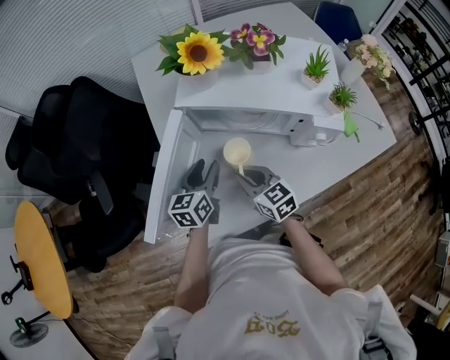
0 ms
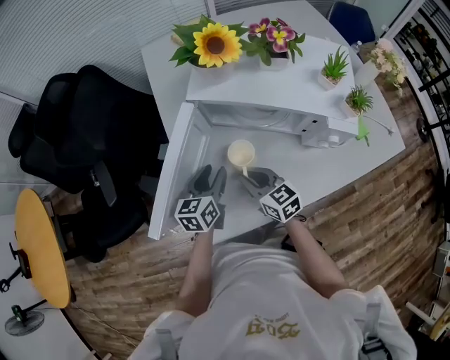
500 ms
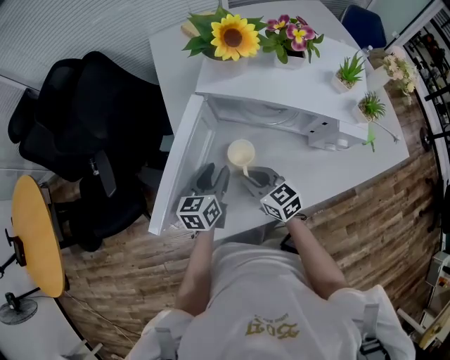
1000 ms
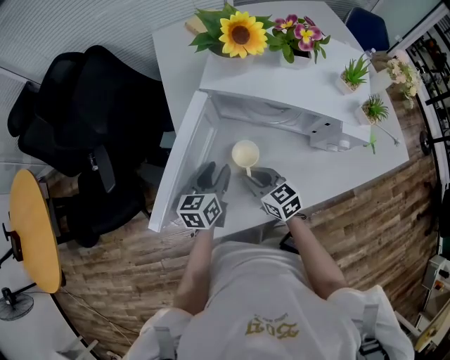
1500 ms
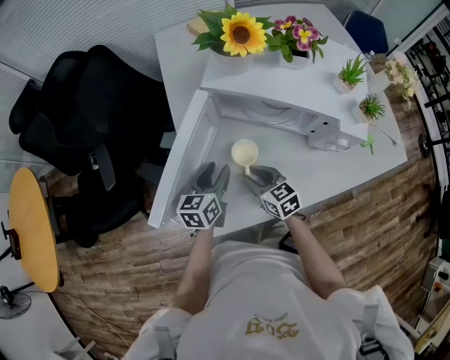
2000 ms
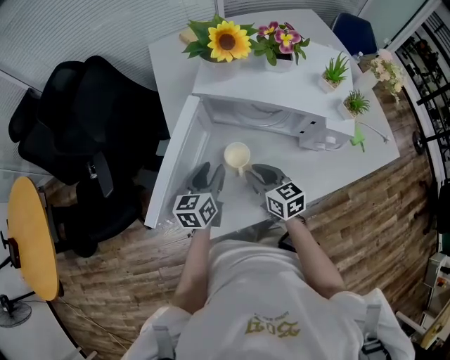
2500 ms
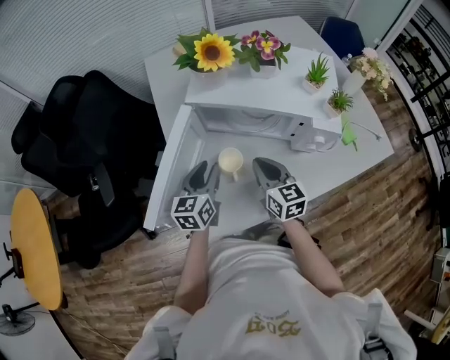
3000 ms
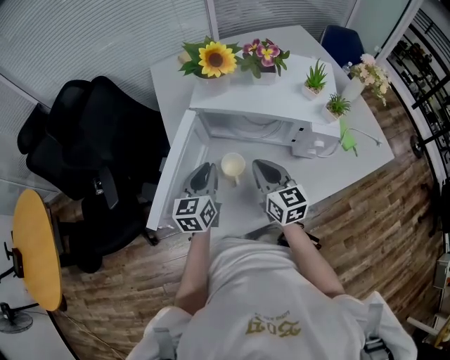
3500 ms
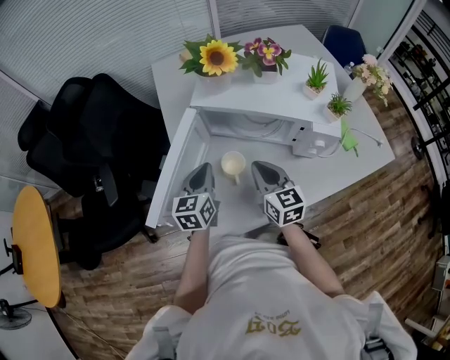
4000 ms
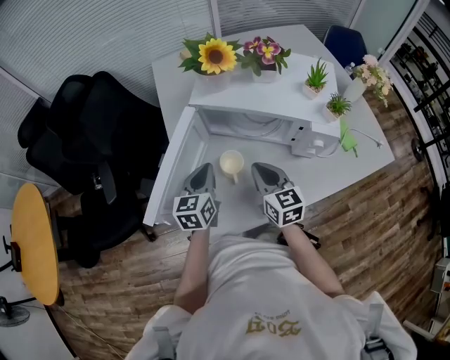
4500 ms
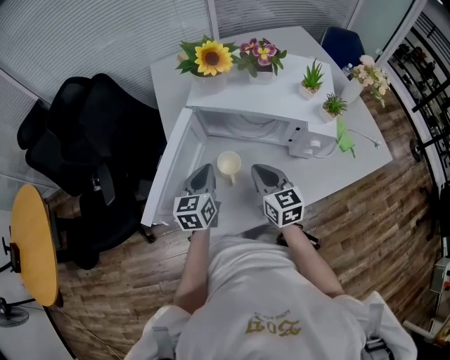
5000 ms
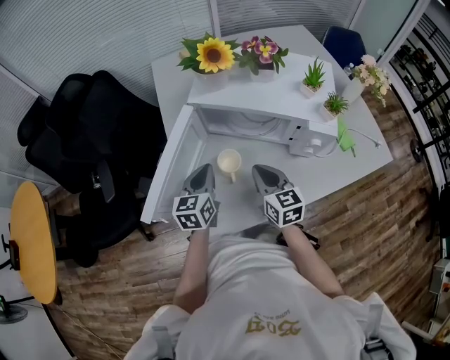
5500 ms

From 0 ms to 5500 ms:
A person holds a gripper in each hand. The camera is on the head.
From 0 ms to 2000 ms: The right gripper moves downward, approximately 5 cm, while the left gripper changes place by some 5 cm.
From 2000 ms to 3500 ms: The left gripper goes about 10 cm upward, and closes its fingers; the right gripper heads upward and to the right, covering roughly 15 cm, changes its angle by approximately 30 degrees, and closes up.
From 3500 ms to 5500 ms: The grippers move only a little.

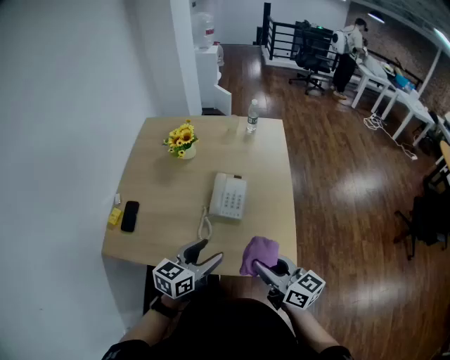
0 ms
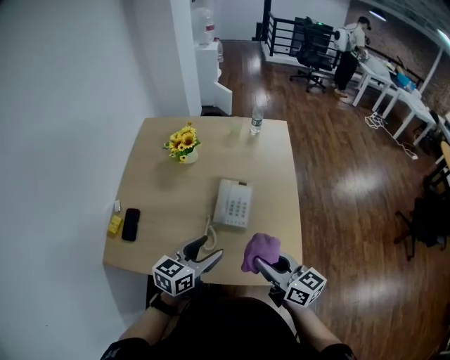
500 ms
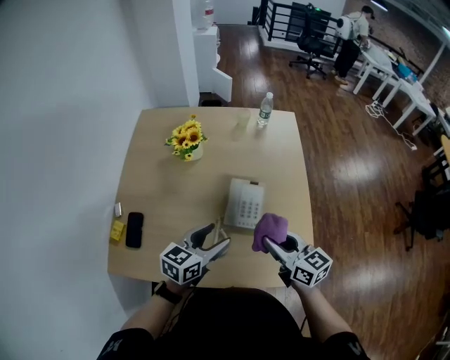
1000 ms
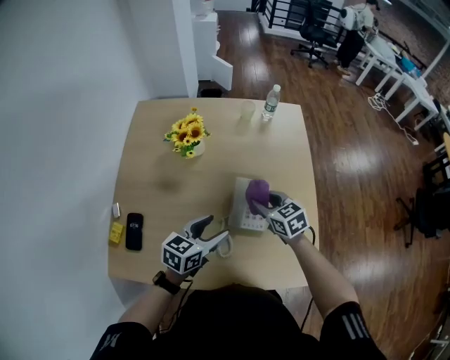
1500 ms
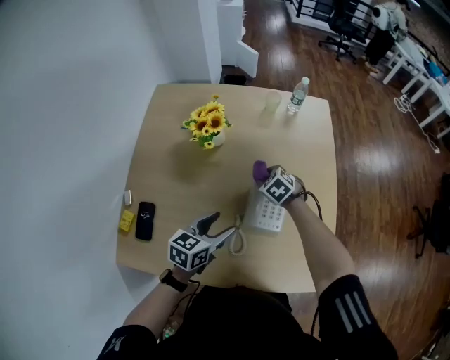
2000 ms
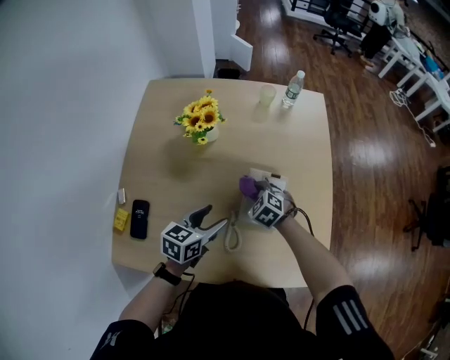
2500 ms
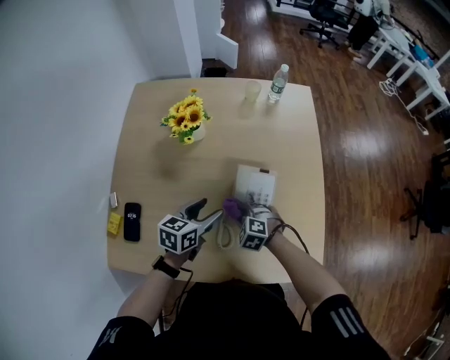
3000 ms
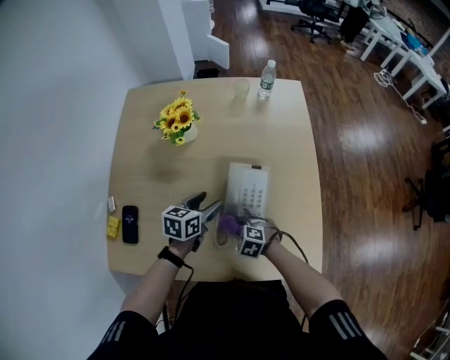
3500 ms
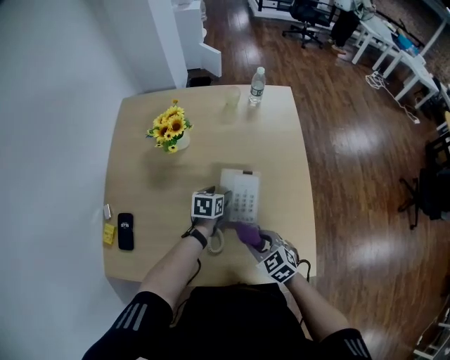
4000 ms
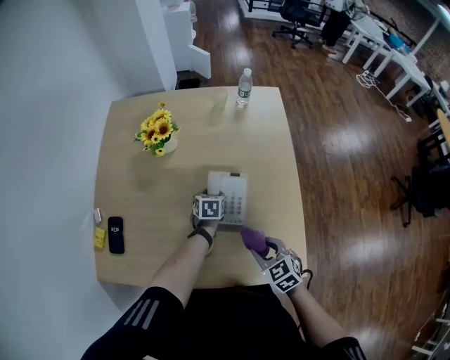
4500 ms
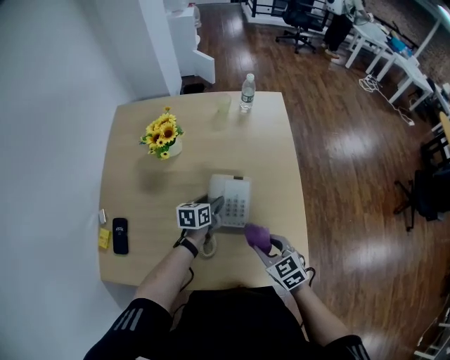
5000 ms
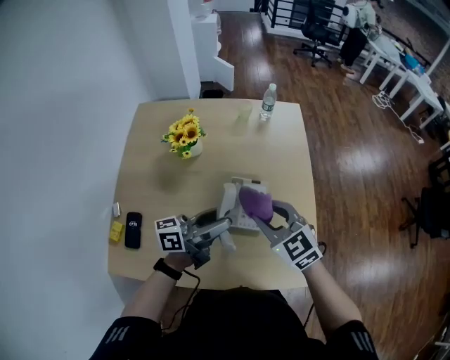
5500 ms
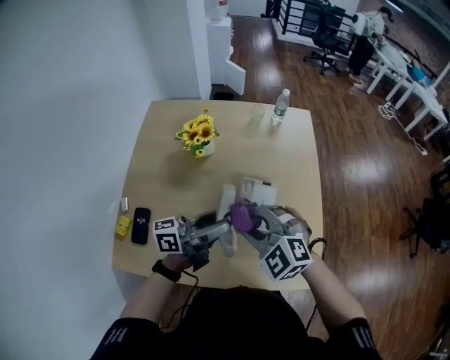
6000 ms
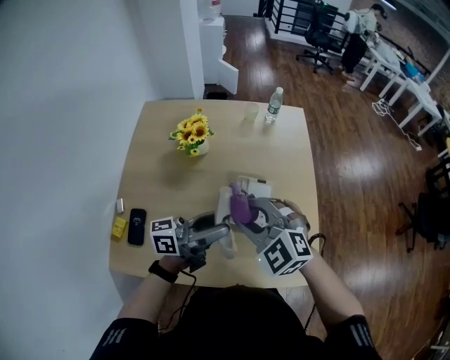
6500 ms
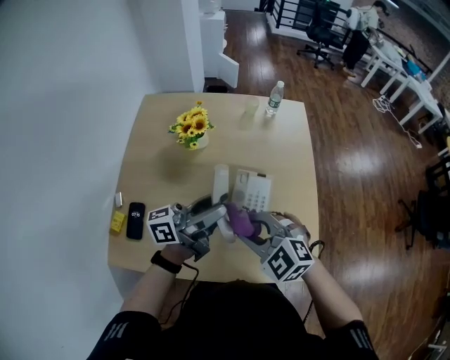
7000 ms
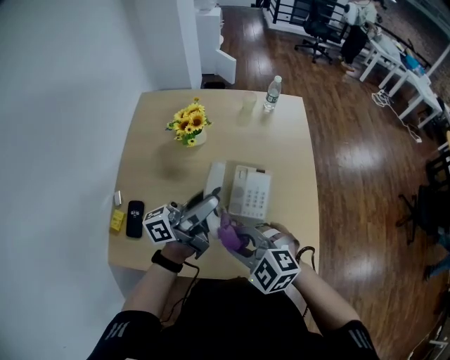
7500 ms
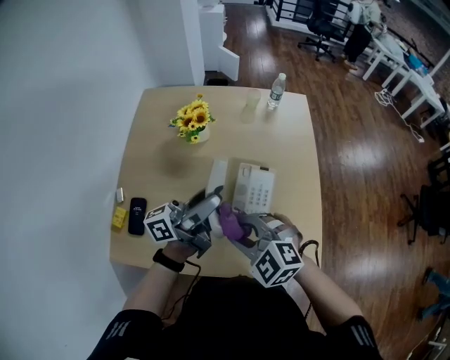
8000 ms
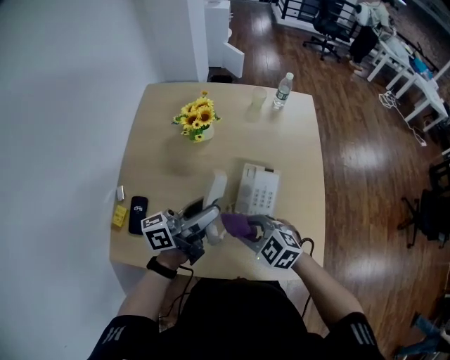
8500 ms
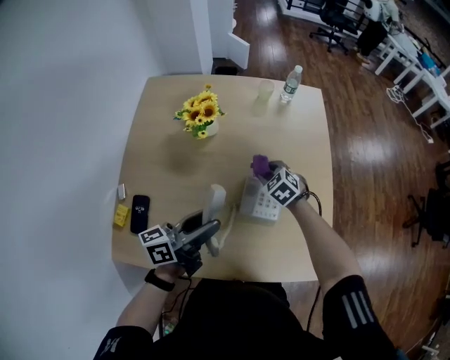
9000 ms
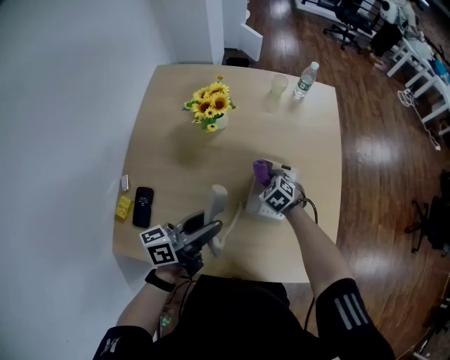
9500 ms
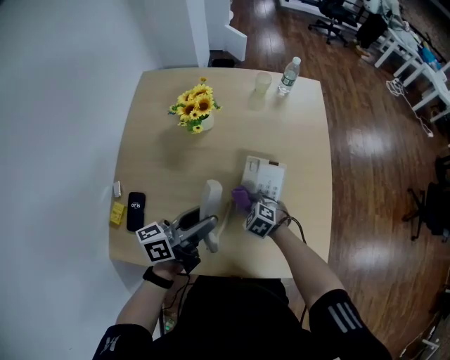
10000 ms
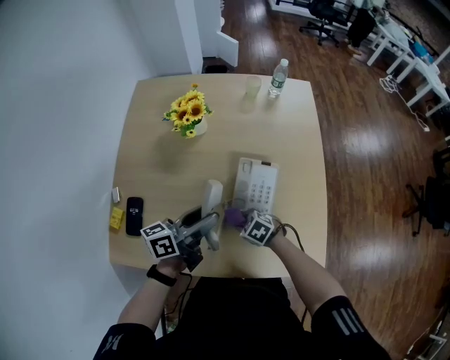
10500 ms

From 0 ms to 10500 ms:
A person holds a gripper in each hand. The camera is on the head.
From 0 ms to 2000 ms: The left gripper goes some 25 cm forward, to the left and downward. The right gripper travels forward and downward by approximately 50 cm, and tips its fingers downward by about 60 degrees.
From 2000 ms to 4000 ms: The right gripper goes roughly 25 cm backward, while the left gripper goes roughly 20 cm downward, forward and to the right.
From 4000 ms to 6500 ms: The right gripper heads upward and to the left, covering roughly 25 cm, and rotates some 40 degrees. Meanwhile the left gripper moves upward and backward, approximately 30 cm, and tips its fingers upward by about 60 degrees.
From 6500 ms to 8500 ms: The right gripper is displaced downward by about 15 cm, and turns by roughly 20 degrees. The left gripper shifts by approximately 5 cm.
From 8500 ms to 10500 ms: The left gripper goes approximately 5 cm downward, while the right gripper shifts about 20 cm downward, and rotates approximately 30 degrees.

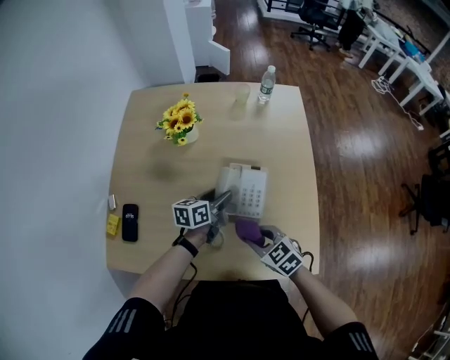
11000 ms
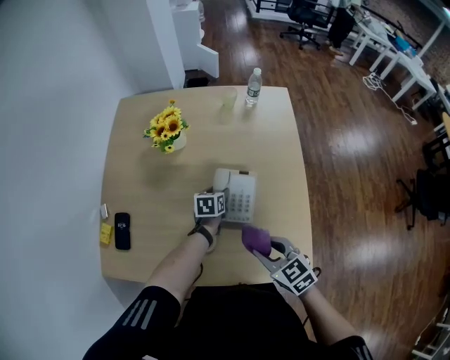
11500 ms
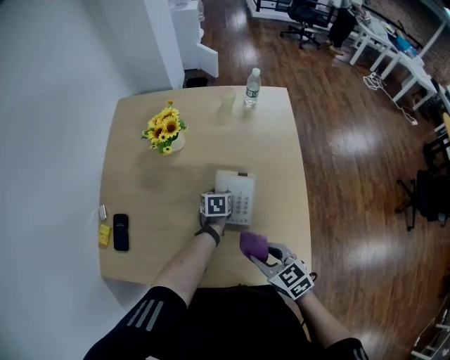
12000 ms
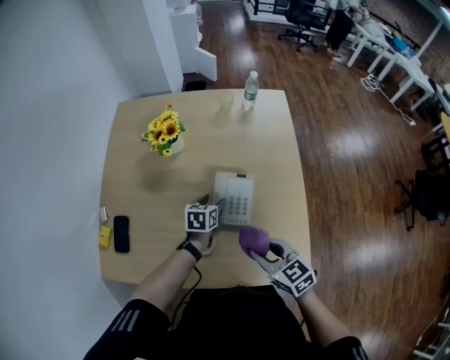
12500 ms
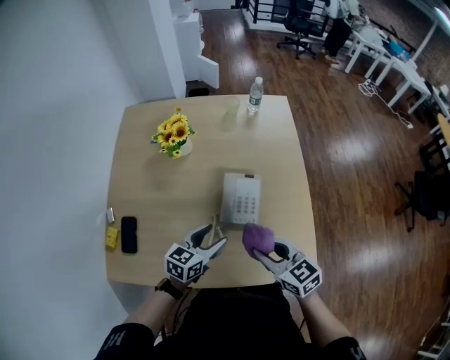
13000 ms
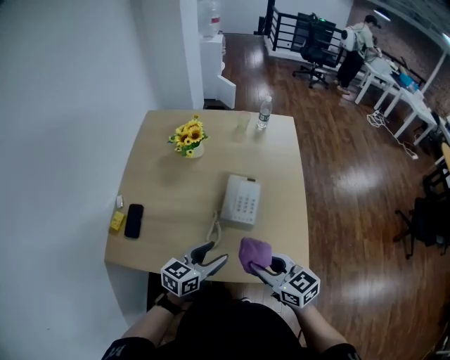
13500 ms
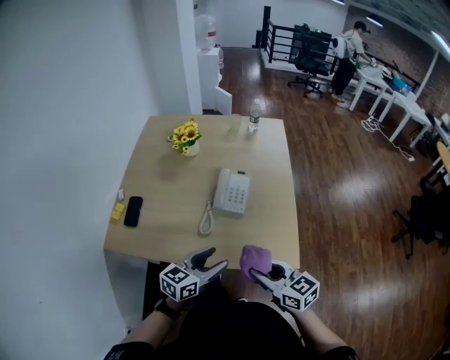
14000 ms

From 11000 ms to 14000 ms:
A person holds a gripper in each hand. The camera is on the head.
From 11000 ms to 12500 ms: The right gripper heads upward and to the right, covering some 10 cm; the left gripper swivels about 20 degrees.
From 12500 ms to 14000 ms: The right gripper heads backward, covering about 20 cm. Meanwhile the left gripper is displaced backward and upward by roughly 40 cm, and turns by some 30 degrees.

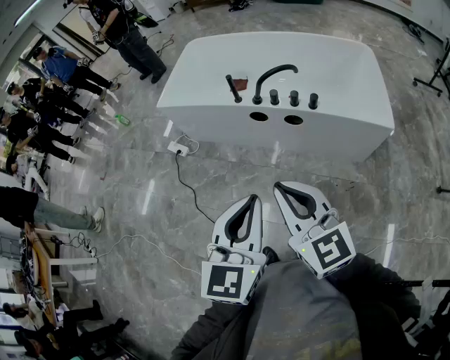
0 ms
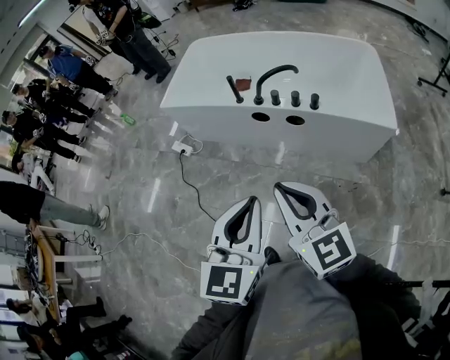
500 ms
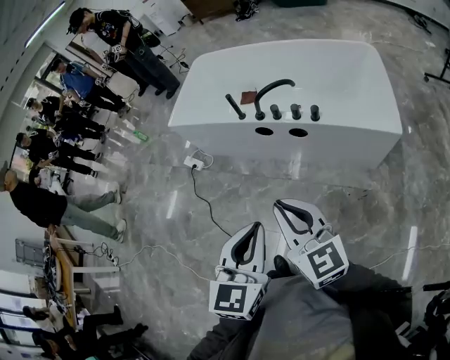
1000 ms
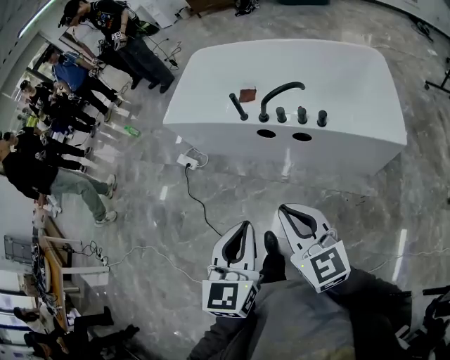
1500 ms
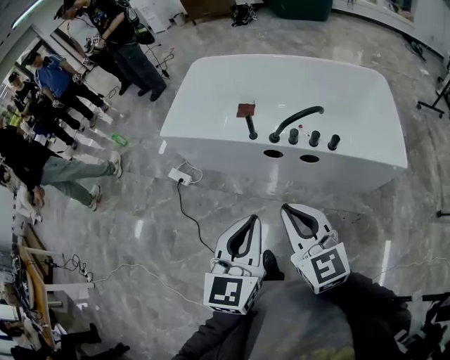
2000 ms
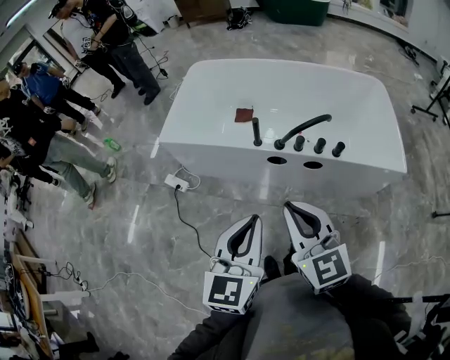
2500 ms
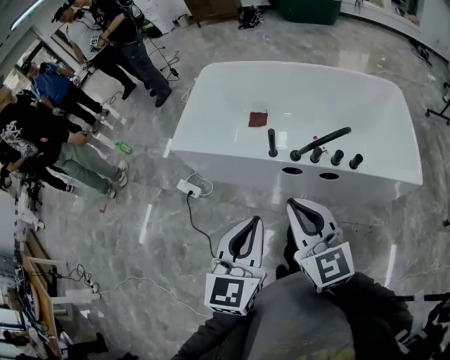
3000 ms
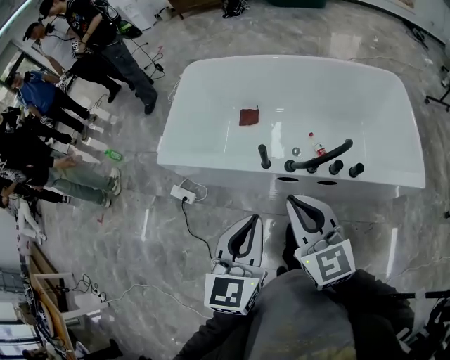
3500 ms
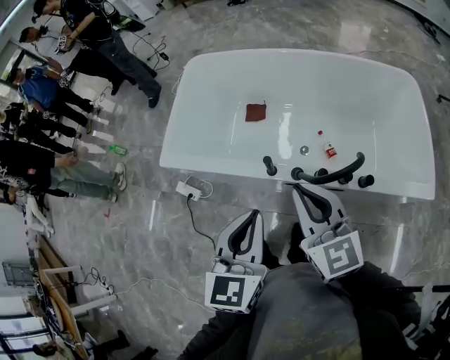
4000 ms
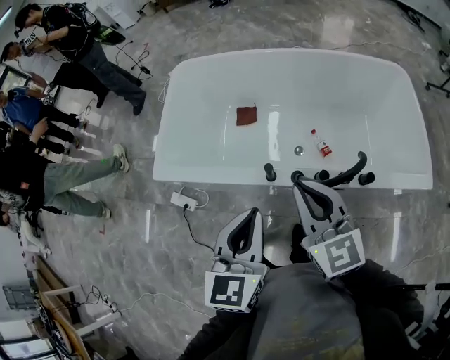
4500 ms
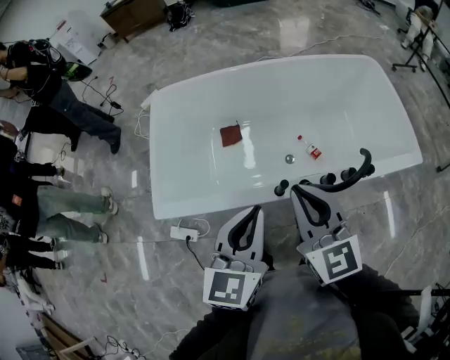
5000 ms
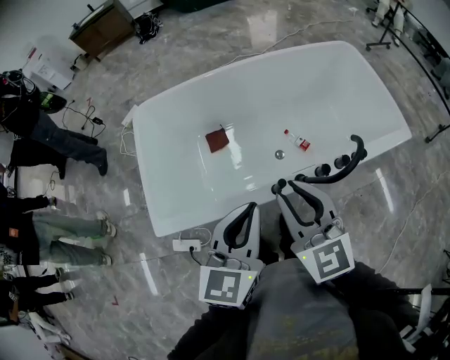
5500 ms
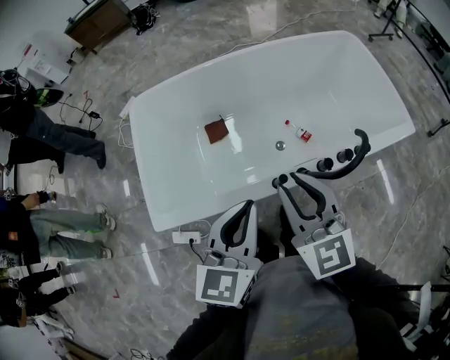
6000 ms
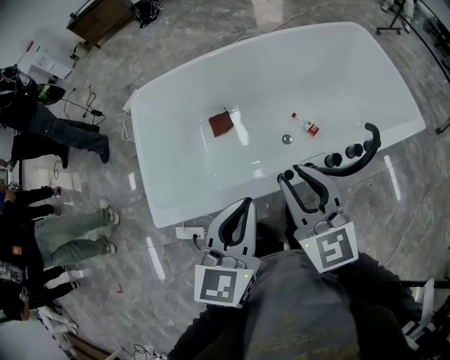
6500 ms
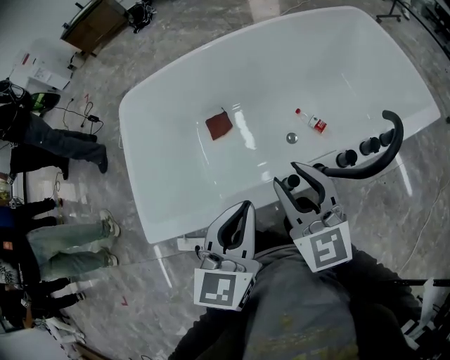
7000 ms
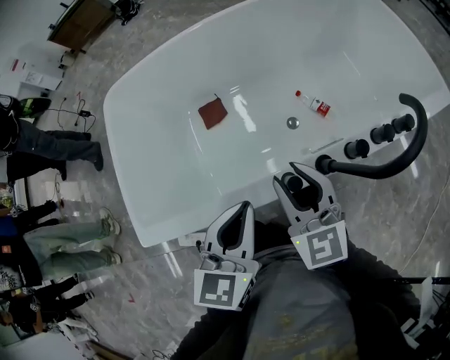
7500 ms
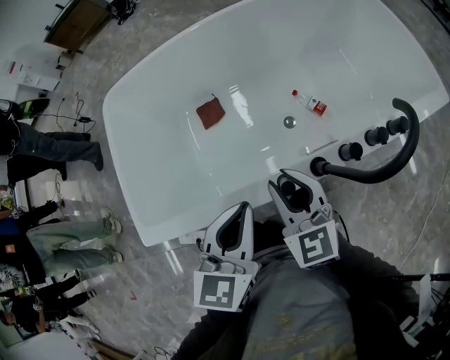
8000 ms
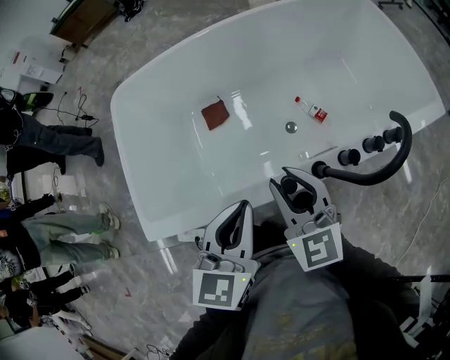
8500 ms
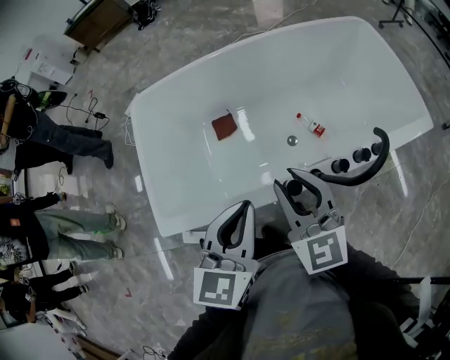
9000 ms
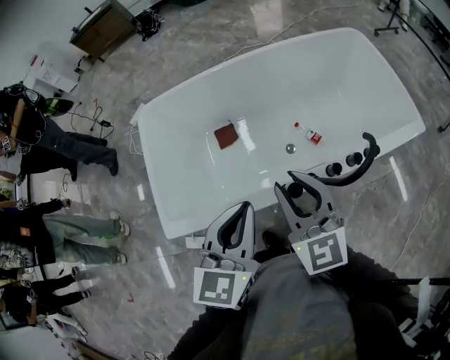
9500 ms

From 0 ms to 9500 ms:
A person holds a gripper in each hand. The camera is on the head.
From 0 ms to 2000 ms: The right gripper travels forward by some 15 cm; the left gripper shifts approximately 20 cm forward and to the left.
From 2000 ms to 4000 ms: Both grippers travel together forward, approximately 30 cm.
From 4000 ms to 5500 ms: The left gripper changes place by approximately 20 cm, and turns by roughly 30 degrees. The right gripper ends up roughly 15 cm from where it was, and turns by some 30 degrees.
From 5500 ms to 7500 ms: The grippers both shift downward by about 25 cm.
From 7500 ms to 9500 ms: Both grippers travel together upward, about 25 cm.
